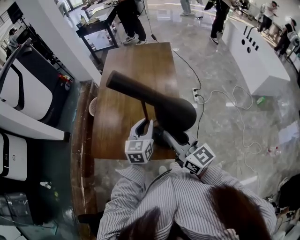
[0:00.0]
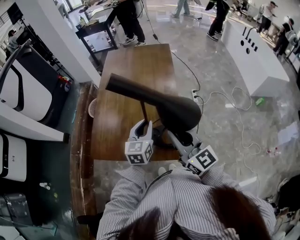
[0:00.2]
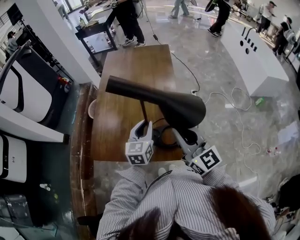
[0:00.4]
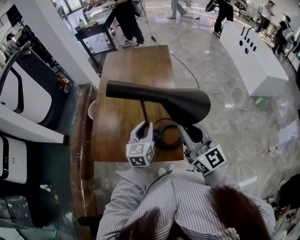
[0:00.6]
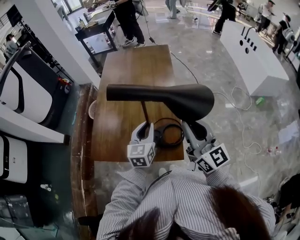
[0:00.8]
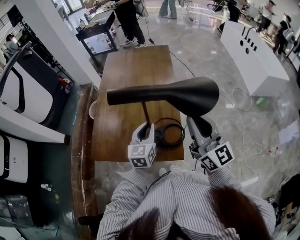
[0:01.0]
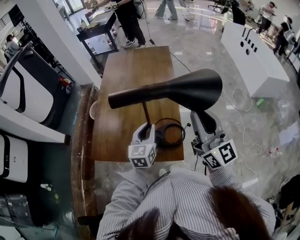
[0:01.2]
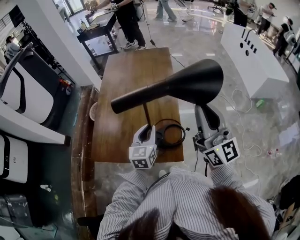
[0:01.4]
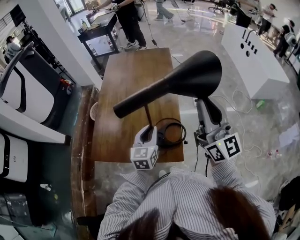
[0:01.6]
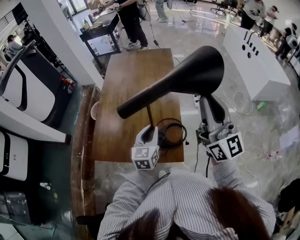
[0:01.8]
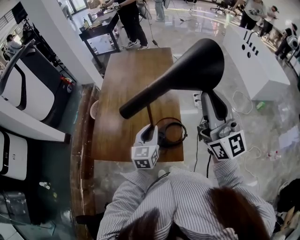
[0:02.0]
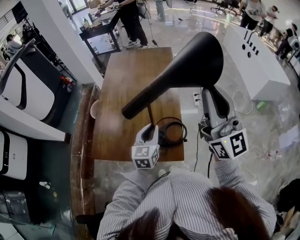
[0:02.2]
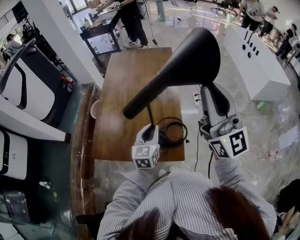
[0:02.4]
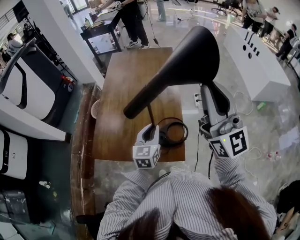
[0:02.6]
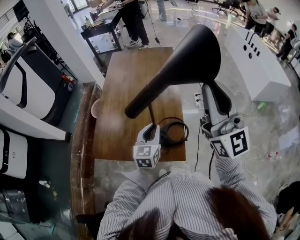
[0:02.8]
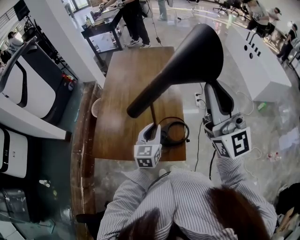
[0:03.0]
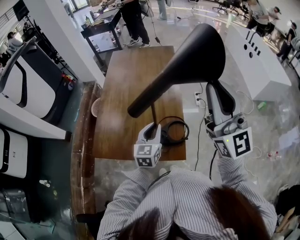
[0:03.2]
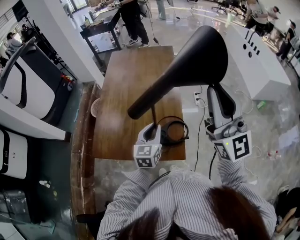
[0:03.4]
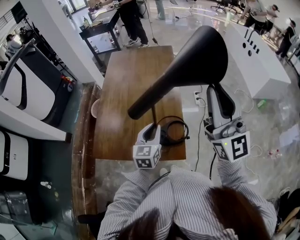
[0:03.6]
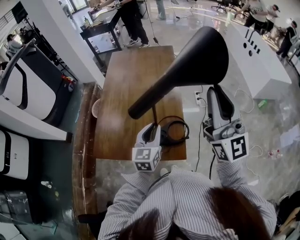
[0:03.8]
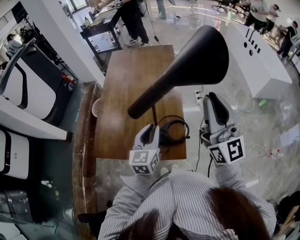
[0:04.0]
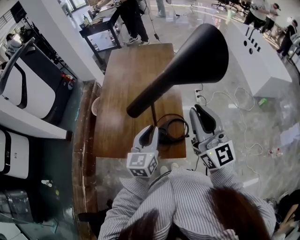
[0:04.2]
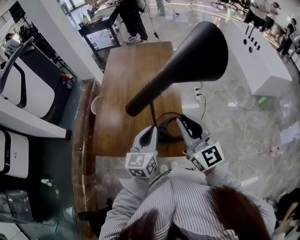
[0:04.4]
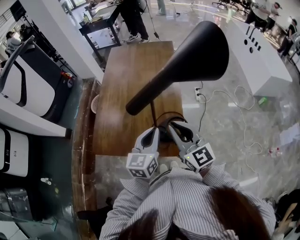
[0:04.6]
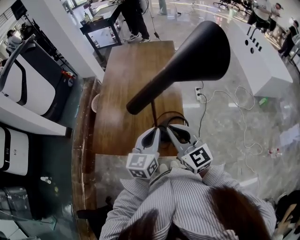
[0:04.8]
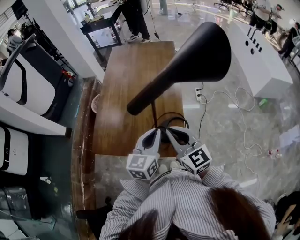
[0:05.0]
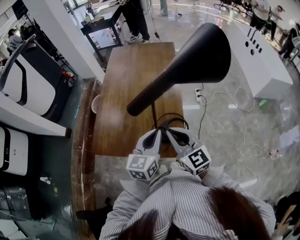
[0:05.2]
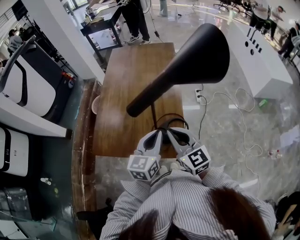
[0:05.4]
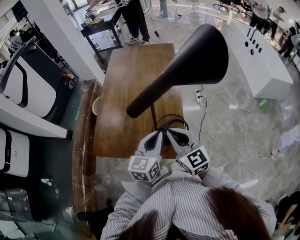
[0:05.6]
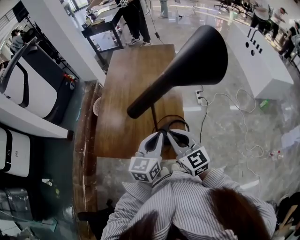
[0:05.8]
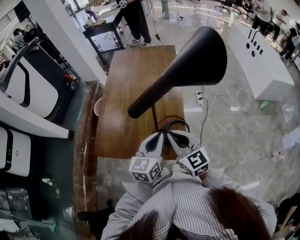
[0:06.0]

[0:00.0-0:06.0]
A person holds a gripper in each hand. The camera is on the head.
0:00.0 to 0:01.6: The right gripper moves upward and to the right, approximately 20 cm, and rotates about 30 degrees.
0:01.6 to 0:03.0: The right gripper goes approximately 5 cm upward.
0:03.0 to 0:04.4: The left gripper moves about 5 cm; the right gripper travels downward by some 15 cm, and swivels some 20 degrees.
0:04.4 to 0:06.0: The right gripper shifts approximately 10 cm downward.

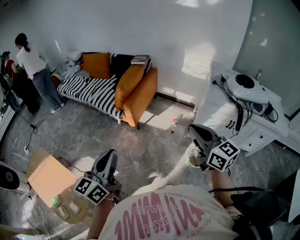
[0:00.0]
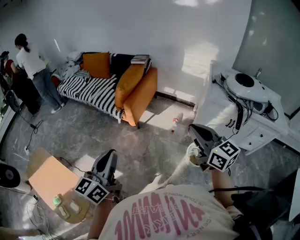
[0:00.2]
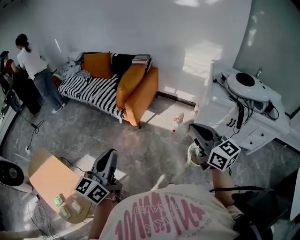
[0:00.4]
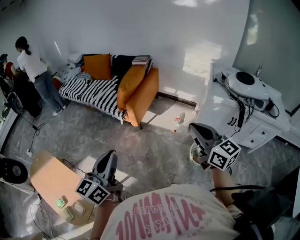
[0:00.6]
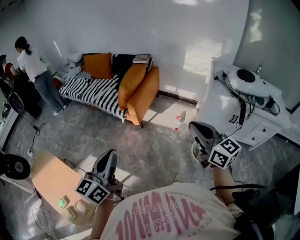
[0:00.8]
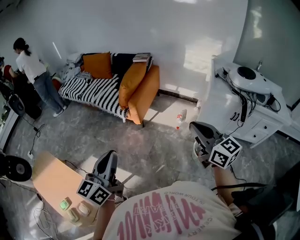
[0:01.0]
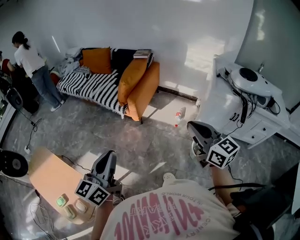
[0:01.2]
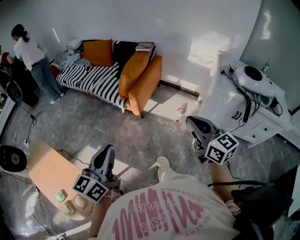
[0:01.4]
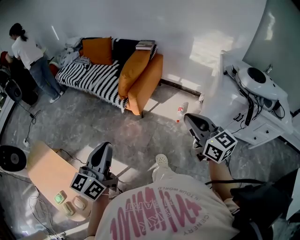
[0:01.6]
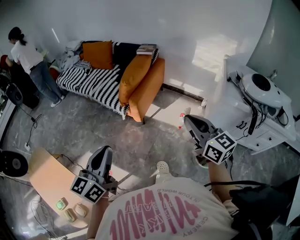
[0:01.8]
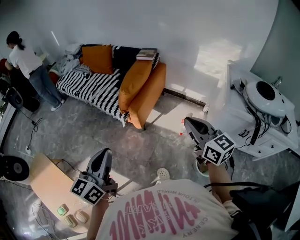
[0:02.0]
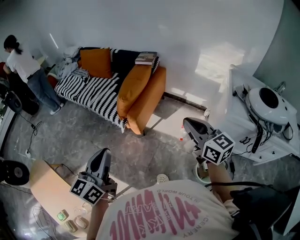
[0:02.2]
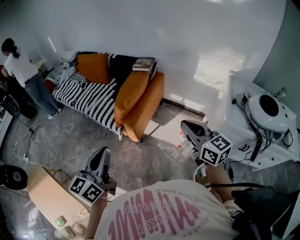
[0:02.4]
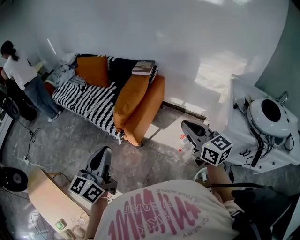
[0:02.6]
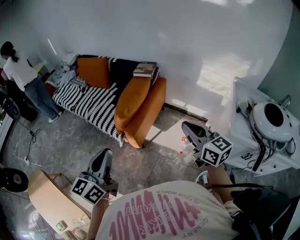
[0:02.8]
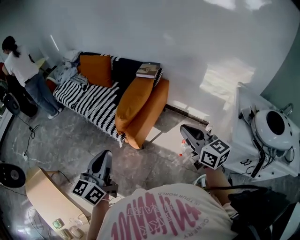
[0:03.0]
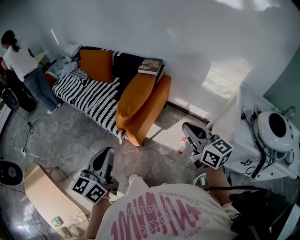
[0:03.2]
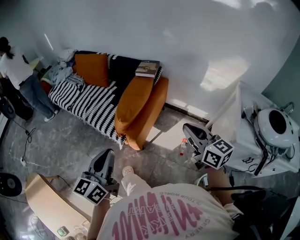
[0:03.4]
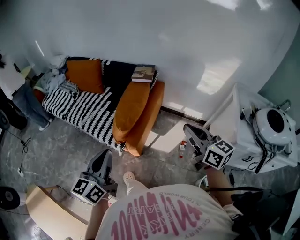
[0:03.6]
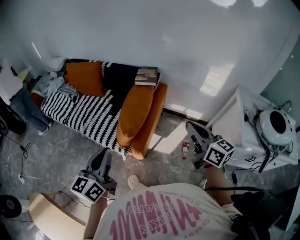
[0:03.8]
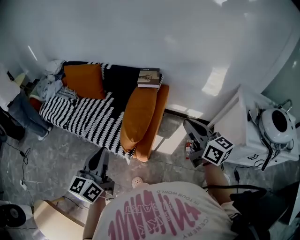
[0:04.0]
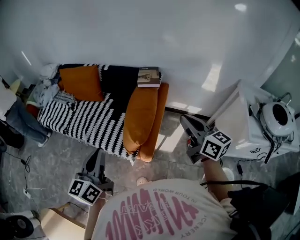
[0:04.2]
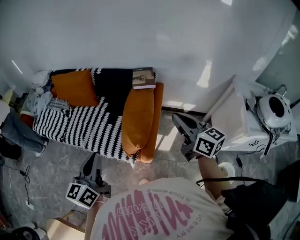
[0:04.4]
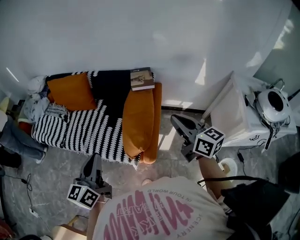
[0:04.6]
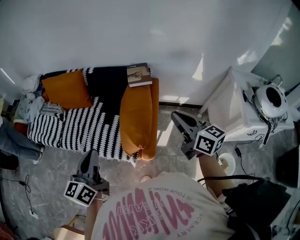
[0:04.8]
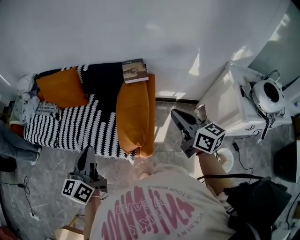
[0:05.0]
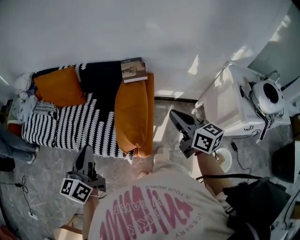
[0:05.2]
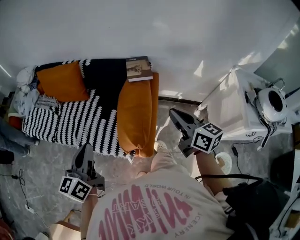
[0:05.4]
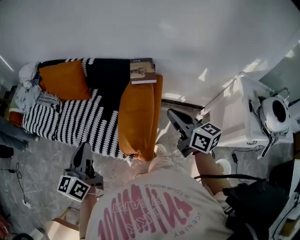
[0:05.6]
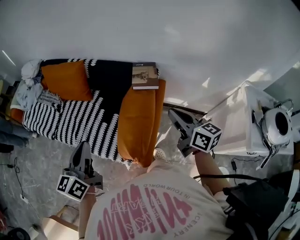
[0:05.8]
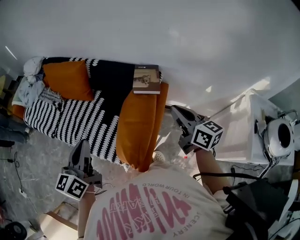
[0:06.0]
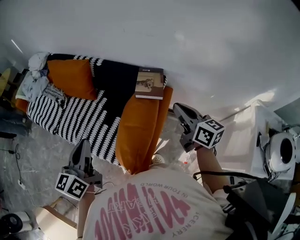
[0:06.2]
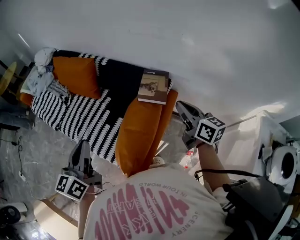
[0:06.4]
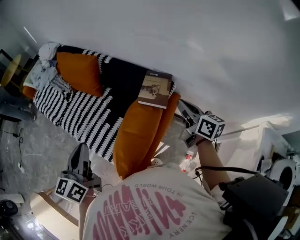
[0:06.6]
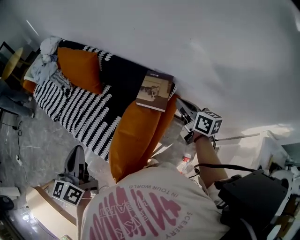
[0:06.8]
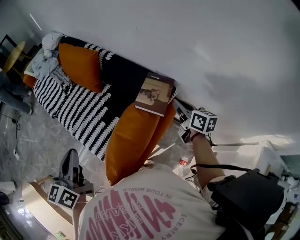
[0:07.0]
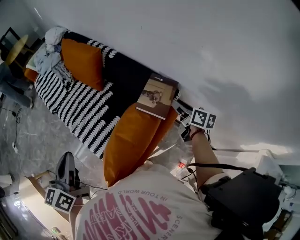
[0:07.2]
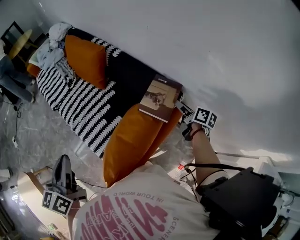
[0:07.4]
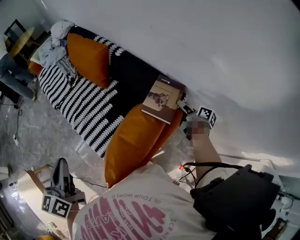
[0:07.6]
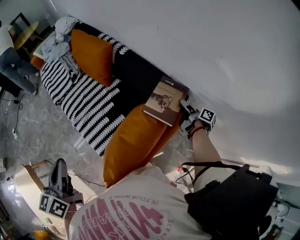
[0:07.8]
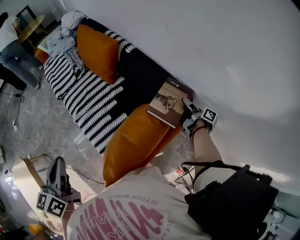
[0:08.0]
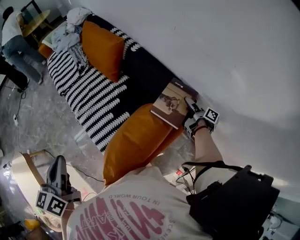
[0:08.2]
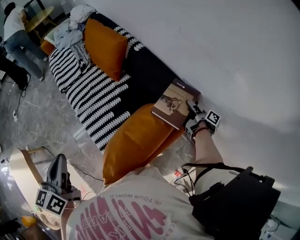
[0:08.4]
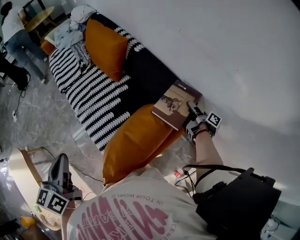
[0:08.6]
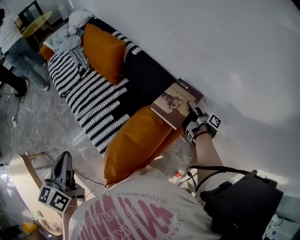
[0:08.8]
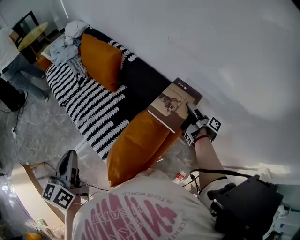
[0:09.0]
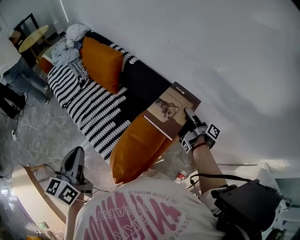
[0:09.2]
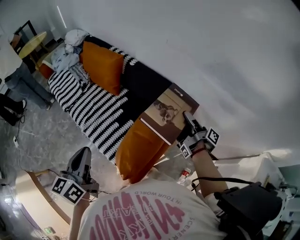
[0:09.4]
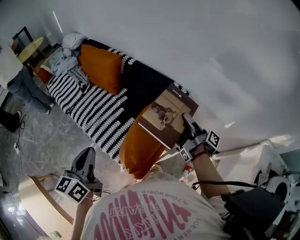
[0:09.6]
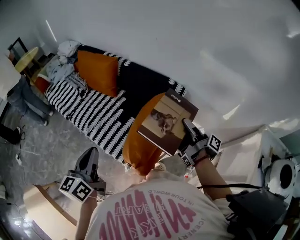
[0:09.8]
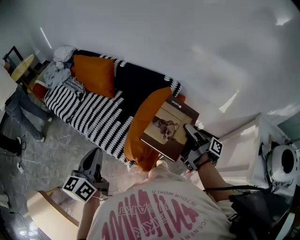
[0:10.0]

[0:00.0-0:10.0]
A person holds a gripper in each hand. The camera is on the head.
0:00.0 to 0:01.4: Both grippers travel together to the left, roughly 5 cm.
0:01.4 to 0:02.8: Both grippers travel together forward, roughly 30 cm.
0:02.8 to 0:04.2: Both grippers move forward and to the left, approximately 25 cm.
0:04.2 to 0:05.8: The two grippers go roughly 15 cm forward.
0:05.8 to 0:07.2: The right gripper travels forward, downward and to the right by some 35 cm, rotates about 30 degrees, and opens; the left gripper shifts about 5 cm to the right, and swivels roughly 30 degrees.
0:07.2 to 0:08.6: The right gripper goes approximately 10 cm downward and forward, rotates around the line of its fingers by approximately 40 degrees, clockwise from behind, and opens and closes again, while the left gripper travels to the left by roughly 5 cm.
0:08.6 to 0:10.0: The right gripper shifts roughly 40 cm backward, upward and to the left, and rotates about 30 degrees. The left gripper is displaced backward by about 5 cm, and changes its angle by approximately 30 degrees.

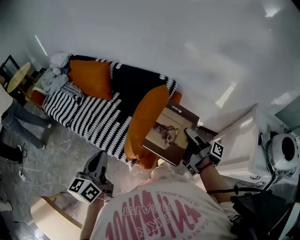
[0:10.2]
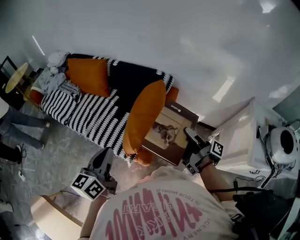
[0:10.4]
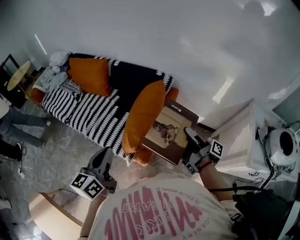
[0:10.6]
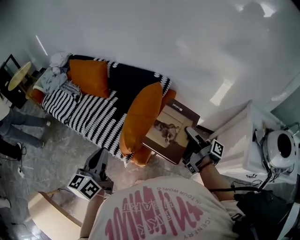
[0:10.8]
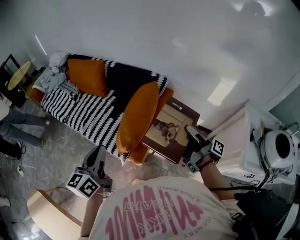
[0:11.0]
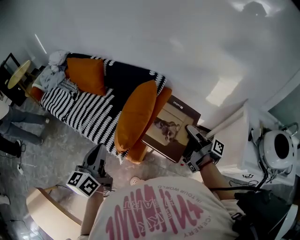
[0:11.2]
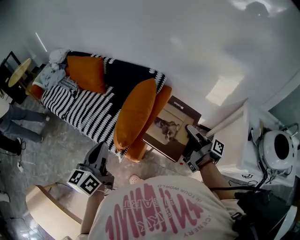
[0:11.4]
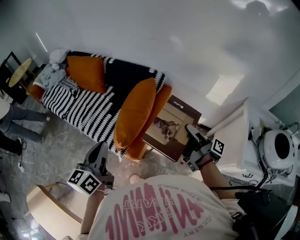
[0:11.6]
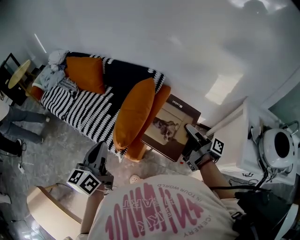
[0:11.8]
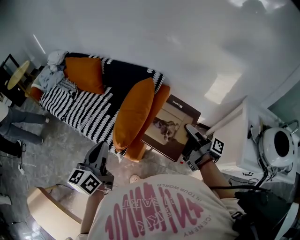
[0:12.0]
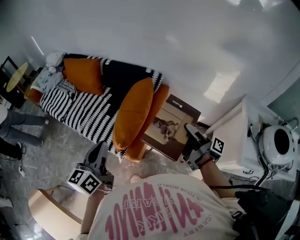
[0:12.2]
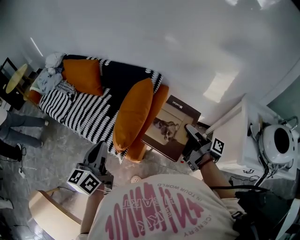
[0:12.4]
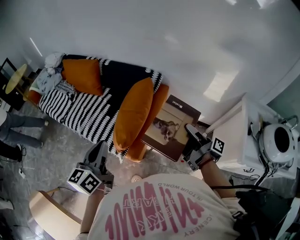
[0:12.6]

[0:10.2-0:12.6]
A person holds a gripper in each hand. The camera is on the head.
0:10.2 to 0:11.4: Both grippers travel together to the right, about 10 cm.
0:11.4 to 0:12.6: The grippers move only a little.

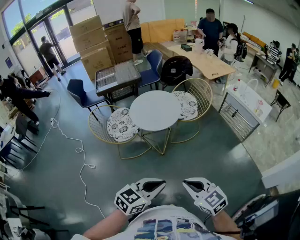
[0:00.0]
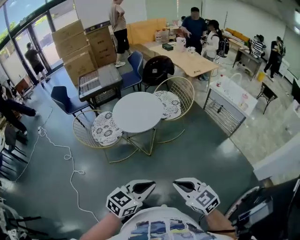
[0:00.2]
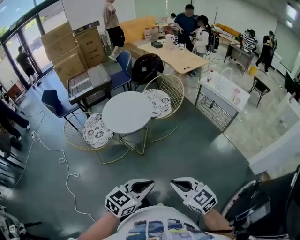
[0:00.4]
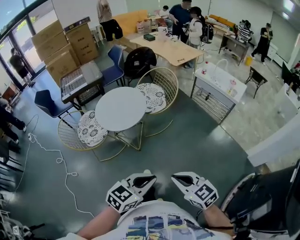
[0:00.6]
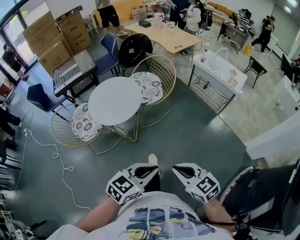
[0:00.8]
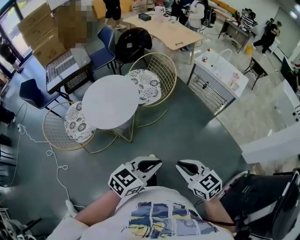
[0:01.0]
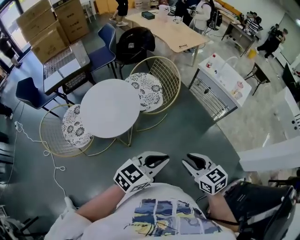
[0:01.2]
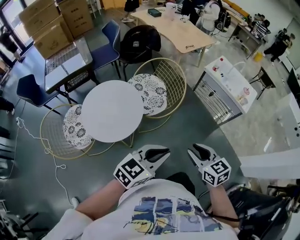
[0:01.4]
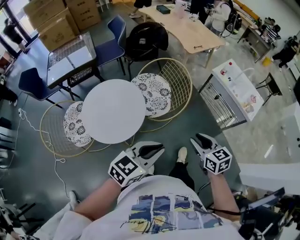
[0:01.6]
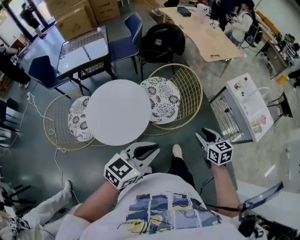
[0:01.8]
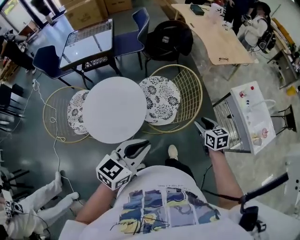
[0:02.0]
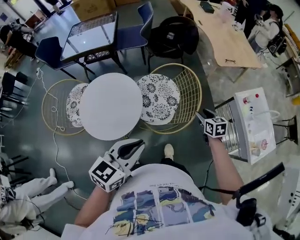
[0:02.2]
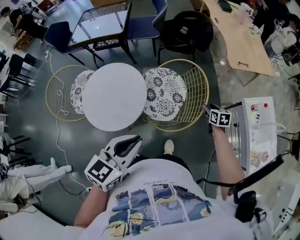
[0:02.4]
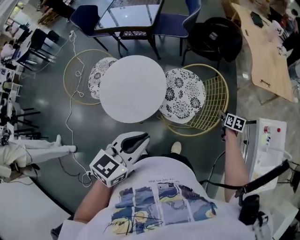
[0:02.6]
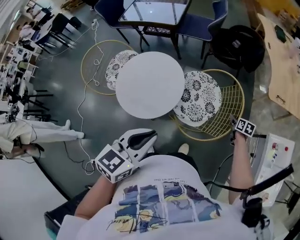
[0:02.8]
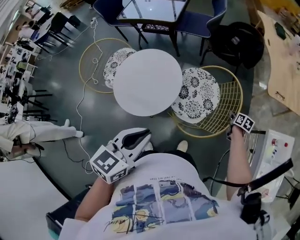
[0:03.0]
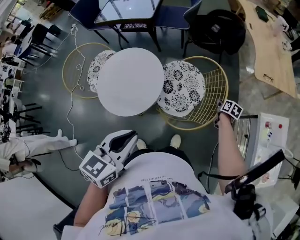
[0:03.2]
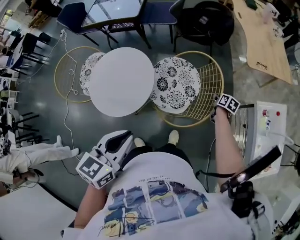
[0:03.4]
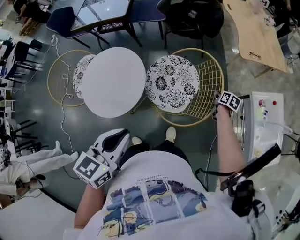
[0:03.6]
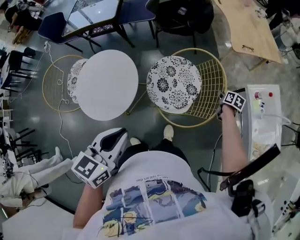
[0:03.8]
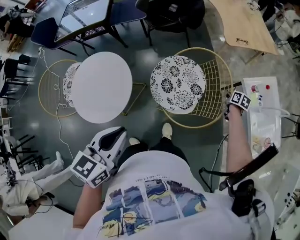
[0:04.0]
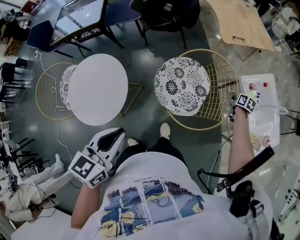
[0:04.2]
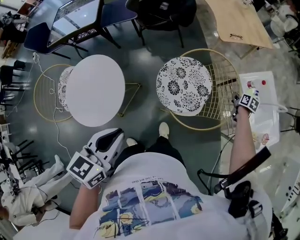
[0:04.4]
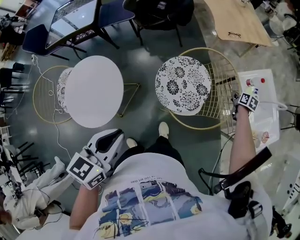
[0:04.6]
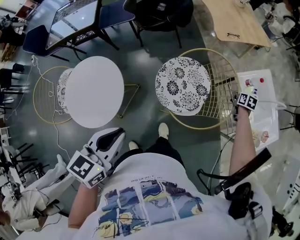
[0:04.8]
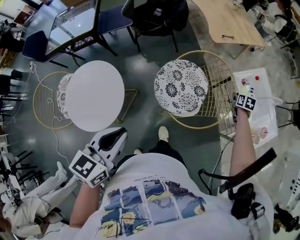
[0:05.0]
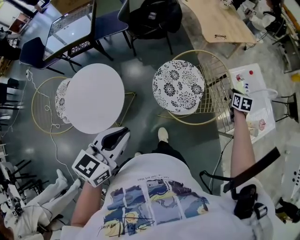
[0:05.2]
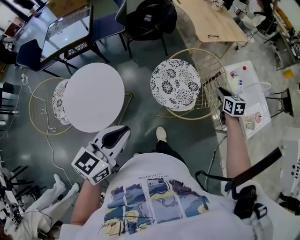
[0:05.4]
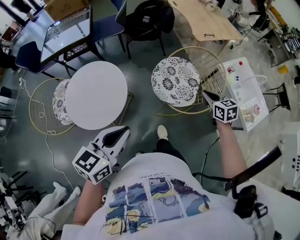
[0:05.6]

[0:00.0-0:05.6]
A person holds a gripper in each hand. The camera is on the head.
0:00.0 to 0:01.4: The two grippers travel together, forward, approximately 40 cm. The right gripper swivels approximately 30 degrees, and opens.
0:01.4 to 0:02.8: The right gripper moves about 70 cm, and rotates some 30 degrees; the left gripper shifts by about 25 cm, and rotates approximately 60 degrees.
0:02.8 to 0:04.2: The right gripper moves some 5 cm, rotates some 30 degrees, and closes its fingers. The left gripper is displaced to the left by approximately 20 cm.
0:04.2 to 0:05.6: The left gripper moves backward and to the left, roughly 15 cm, while the right gripper goes approximately 40 cm to the left, backward and upward, and rotates some 40 degrees.
